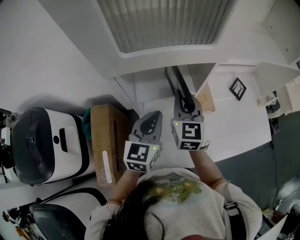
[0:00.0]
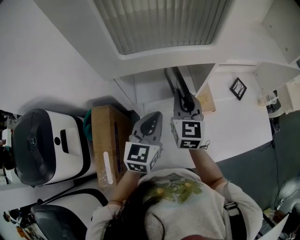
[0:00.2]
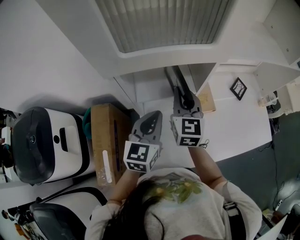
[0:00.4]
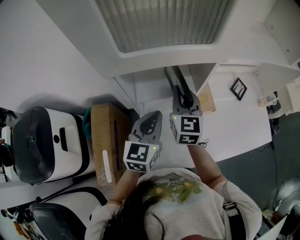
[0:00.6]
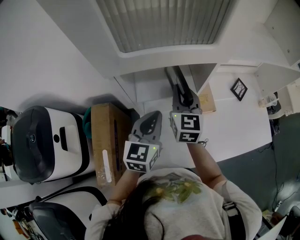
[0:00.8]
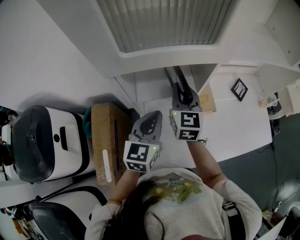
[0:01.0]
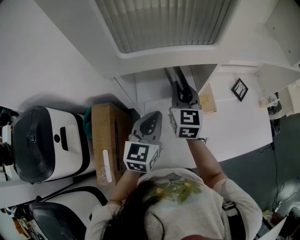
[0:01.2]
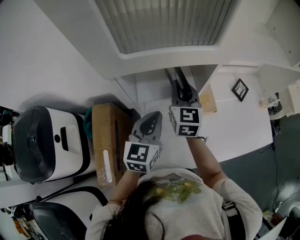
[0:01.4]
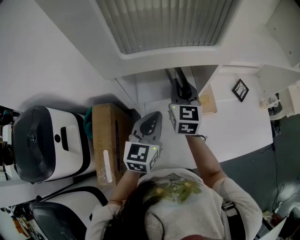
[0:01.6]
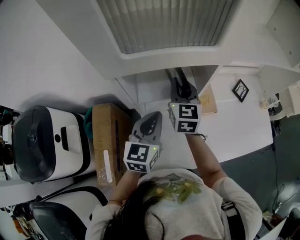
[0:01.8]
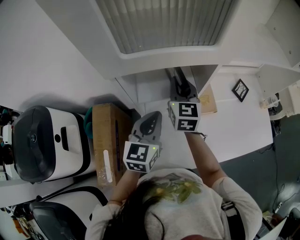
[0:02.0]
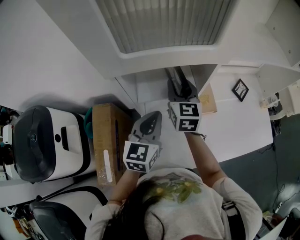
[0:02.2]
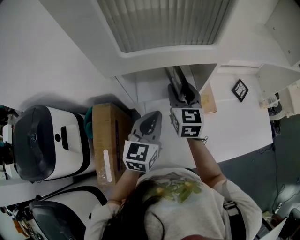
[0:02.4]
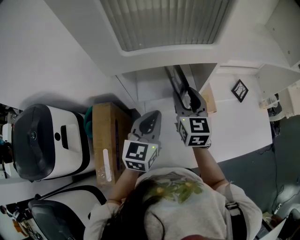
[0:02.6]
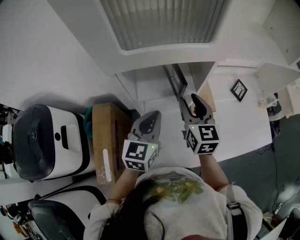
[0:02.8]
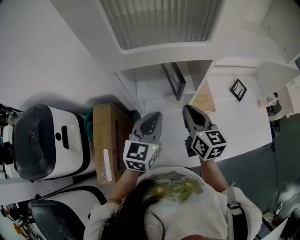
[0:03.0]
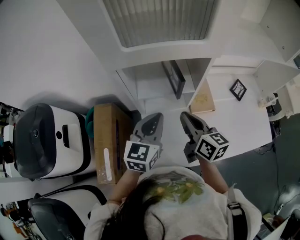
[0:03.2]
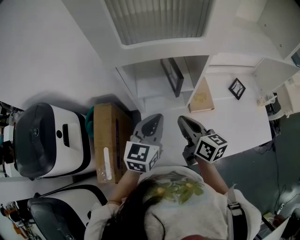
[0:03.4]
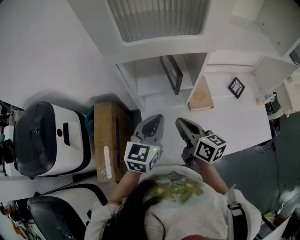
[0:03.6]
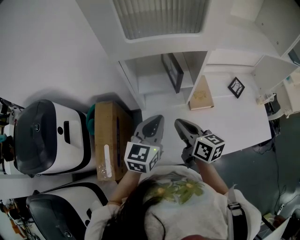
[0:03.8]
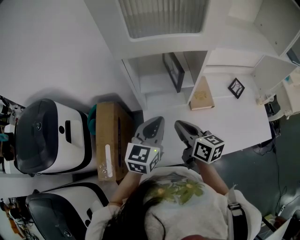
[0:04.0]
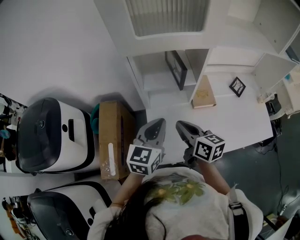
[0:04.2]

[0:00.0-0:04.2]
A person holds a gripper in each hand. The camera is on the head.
0:00.0 to 0:01.4: The grippers make only small movements.
0:01.4 to 0:02.8: The right gripper travels backward by approximately 5 cm, and opens.
0:02.8 to 0:04.2: The grippers both shift backward by some 10 cm. The right gripper rotates roughly 40 degrees, and closes.

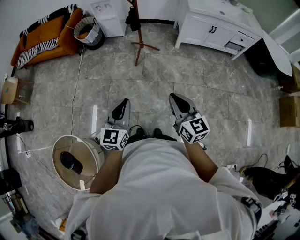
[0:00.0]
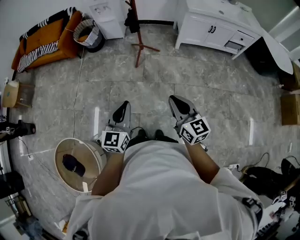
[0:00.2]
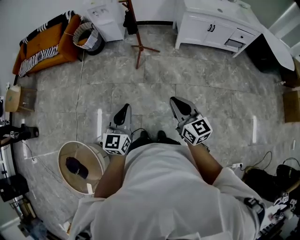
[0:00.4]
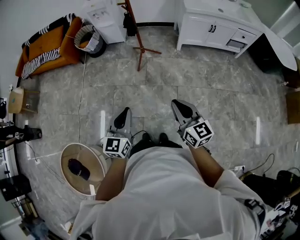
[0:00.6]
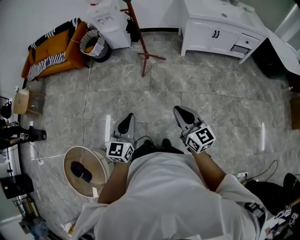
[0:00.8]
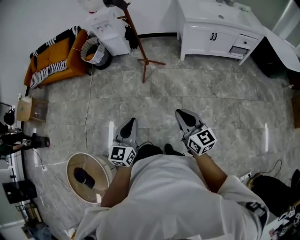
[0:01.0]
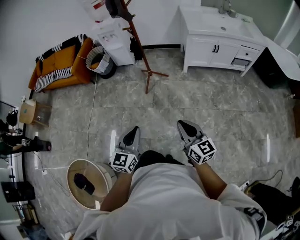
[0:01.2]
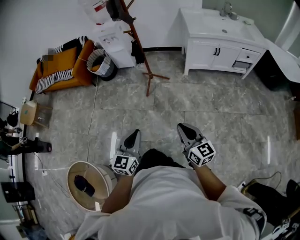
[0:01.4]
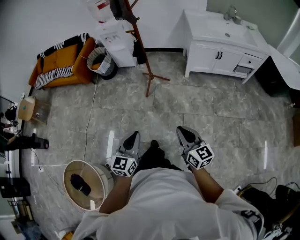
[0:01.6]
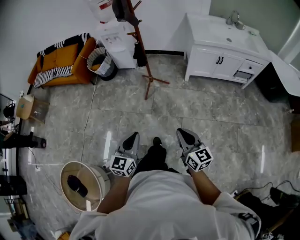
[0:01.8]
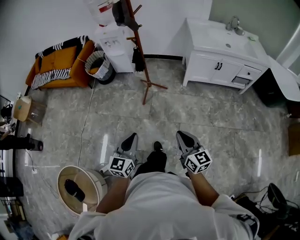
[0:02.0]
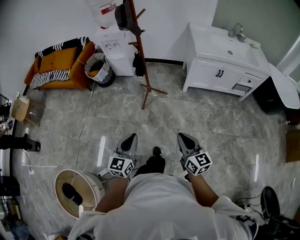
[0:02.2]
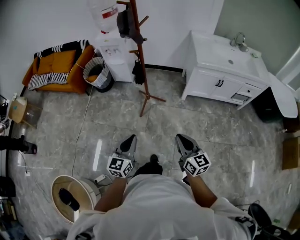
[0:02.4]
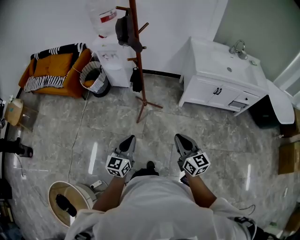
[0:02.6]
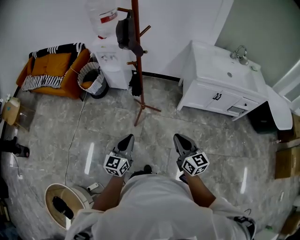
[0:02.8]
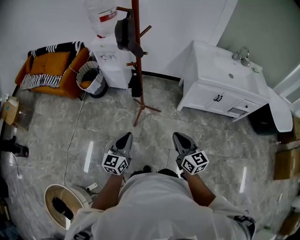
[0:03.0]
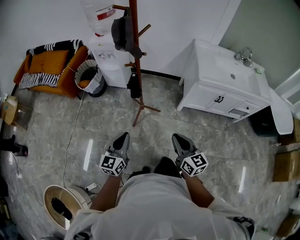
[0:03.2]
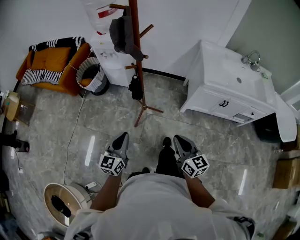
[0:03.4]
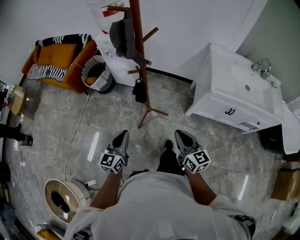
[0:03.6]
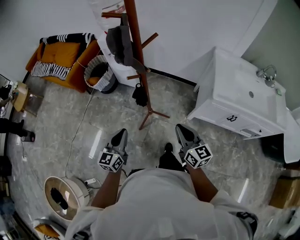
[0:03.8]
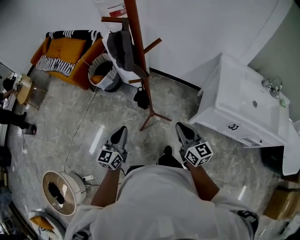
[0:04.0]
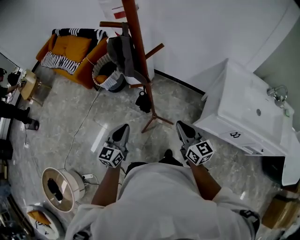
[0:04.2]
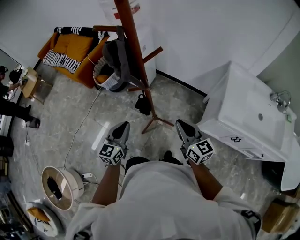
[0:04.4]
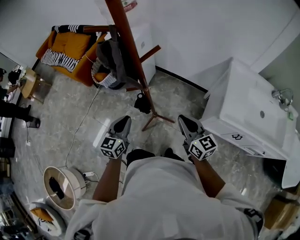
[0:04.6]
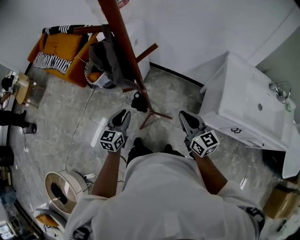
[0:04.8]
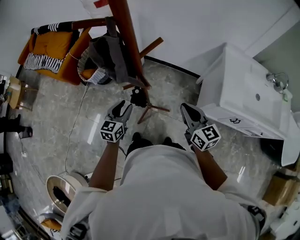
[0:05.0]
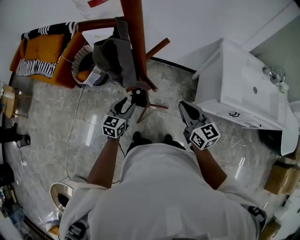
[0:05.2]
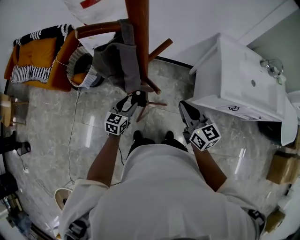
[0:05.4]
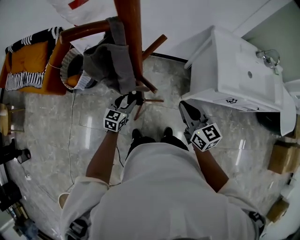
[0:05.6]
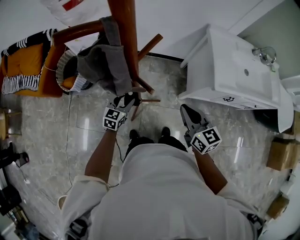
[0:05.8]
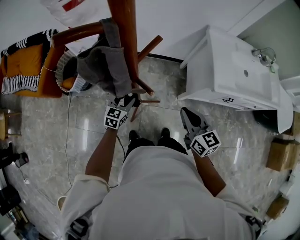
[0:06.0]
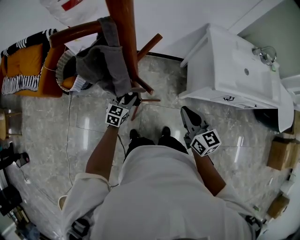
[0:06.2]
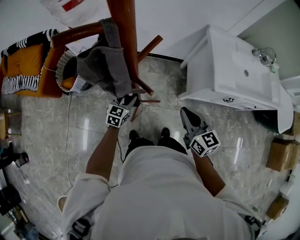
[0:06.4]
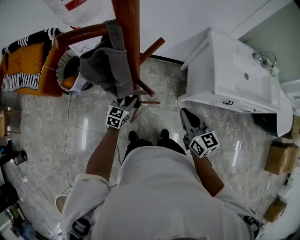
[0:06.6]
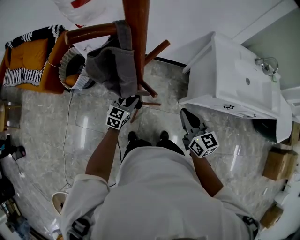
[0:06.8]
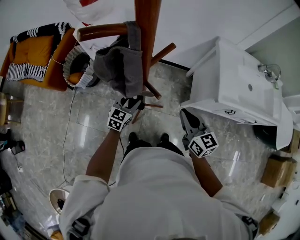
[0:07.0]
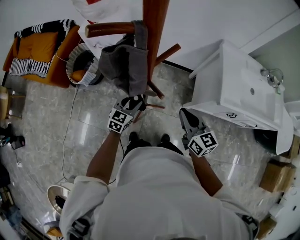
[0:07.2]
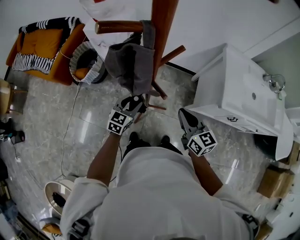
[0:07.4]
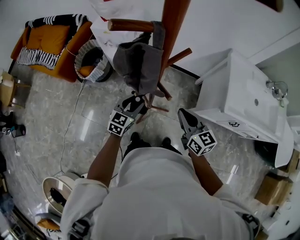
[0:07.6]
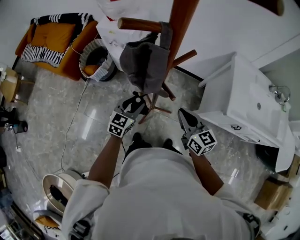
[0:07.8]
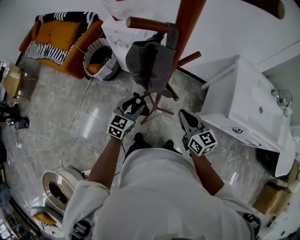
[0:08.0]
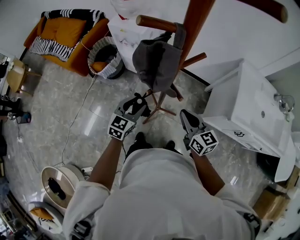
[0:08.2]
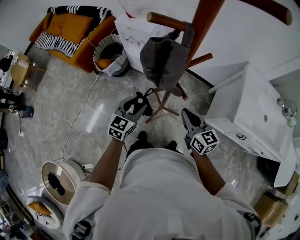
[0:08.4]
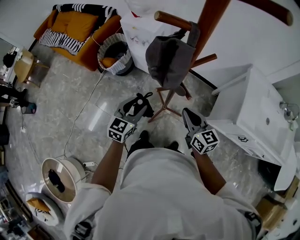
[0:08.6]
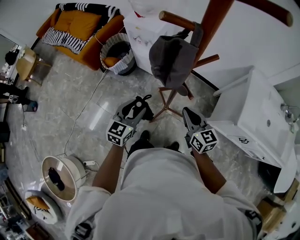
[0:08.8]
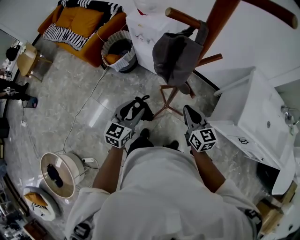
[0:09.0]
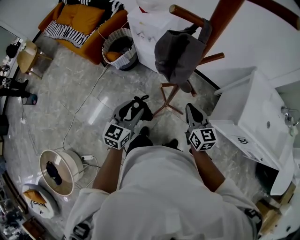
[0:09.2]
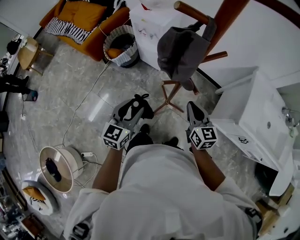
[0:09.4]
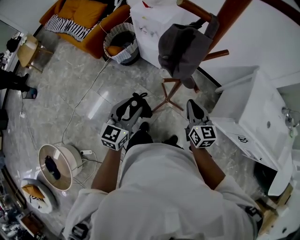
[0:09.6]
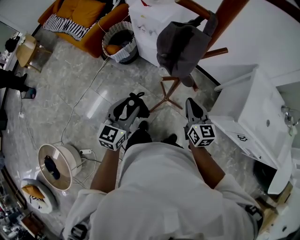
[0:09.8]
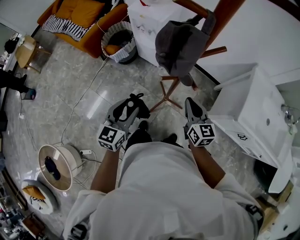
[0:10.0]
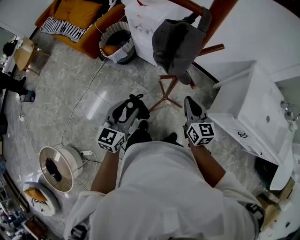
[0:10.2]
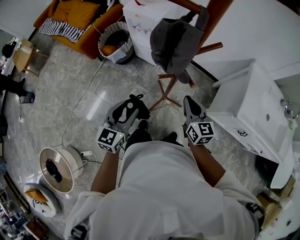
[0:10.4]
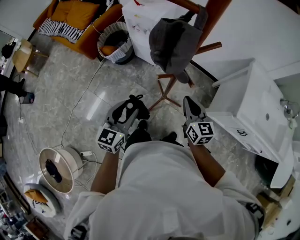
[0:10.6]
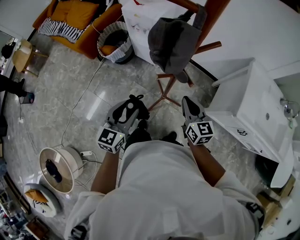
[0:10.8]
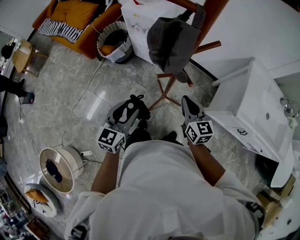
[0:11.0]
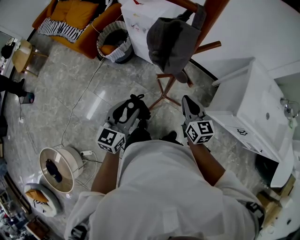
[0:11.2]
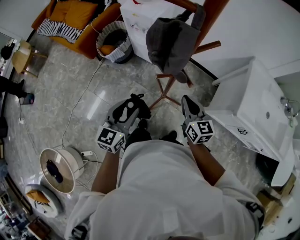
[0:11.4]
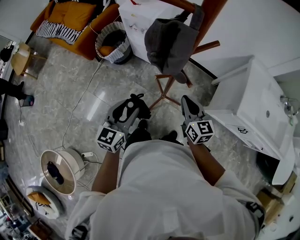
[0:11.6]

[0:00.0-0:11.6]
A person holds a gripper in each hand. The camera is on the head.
0:00.0 to 0:01.4: Both grippers travel together to the right, about 10 cm.
0:01.4 to 0:02.8: The two grippers go about 30 cm forward.
0:02.8 to 0:04.4: Both grippers travel together forward, roughly 35 cm. The right gripper rotates about 20 degrees.
0:04.4 to 0:05.8: The left gripper moves approximately 25 cm, changes its angle by roughly 30 degrees, and opens up, while the right gripper changes its angle by some 30 degrees.
0:05.8 to 0:07.2: There are only small adjustments of the grippers.
0:07.2 to 0:08.8: The right gripper goes some 10 cm to the left, while the left gripper is displaced to the left, upward and backward by roughly 15 cm, and rotates some 20 degrees.
0:08.8 to 0:10.2: The left gripper is displaced backward by roughly 5 cm.
0:10.2 to 0:11.6: The grippers make only small movements.

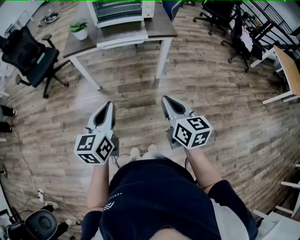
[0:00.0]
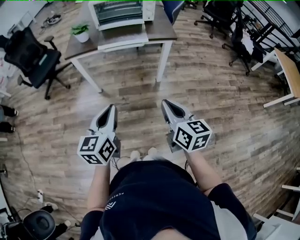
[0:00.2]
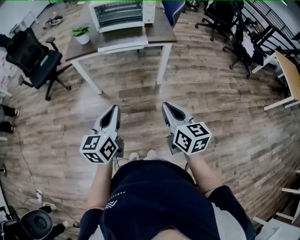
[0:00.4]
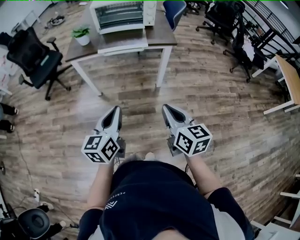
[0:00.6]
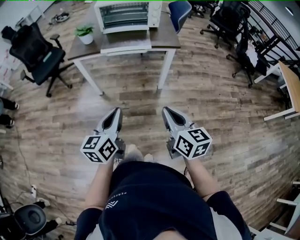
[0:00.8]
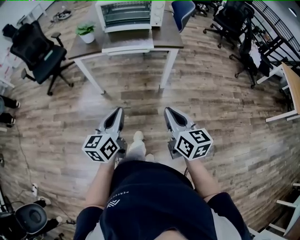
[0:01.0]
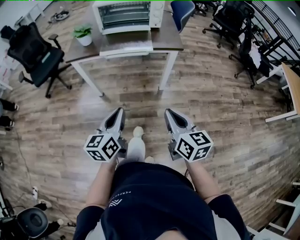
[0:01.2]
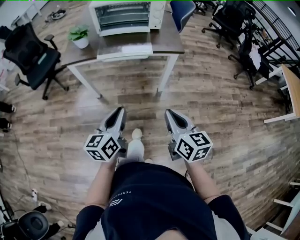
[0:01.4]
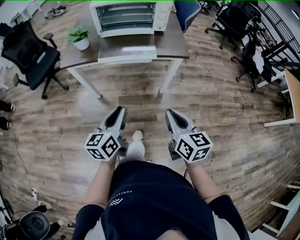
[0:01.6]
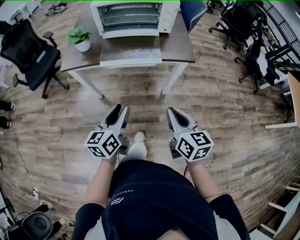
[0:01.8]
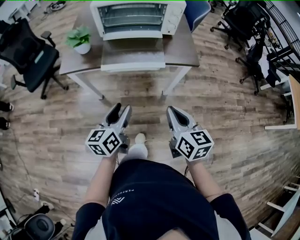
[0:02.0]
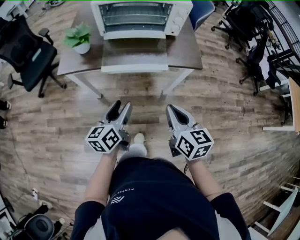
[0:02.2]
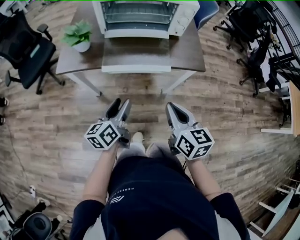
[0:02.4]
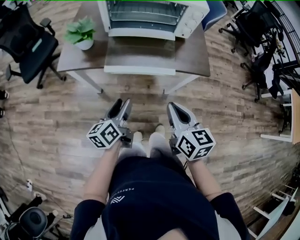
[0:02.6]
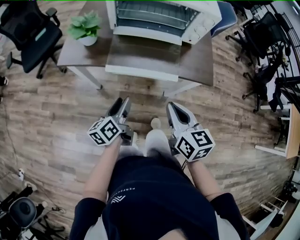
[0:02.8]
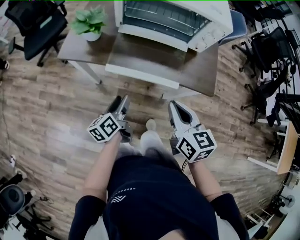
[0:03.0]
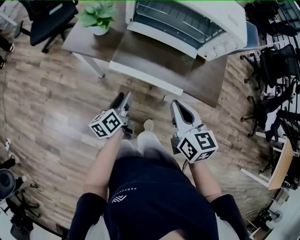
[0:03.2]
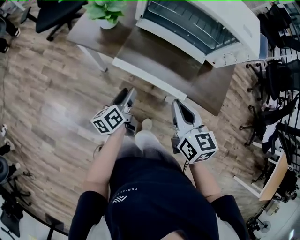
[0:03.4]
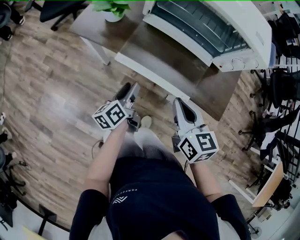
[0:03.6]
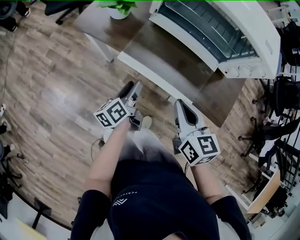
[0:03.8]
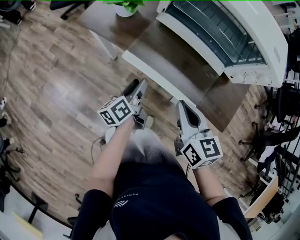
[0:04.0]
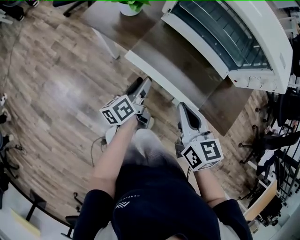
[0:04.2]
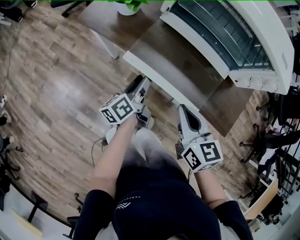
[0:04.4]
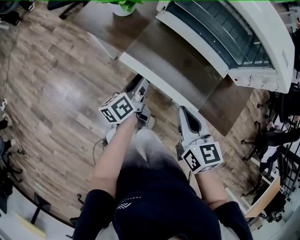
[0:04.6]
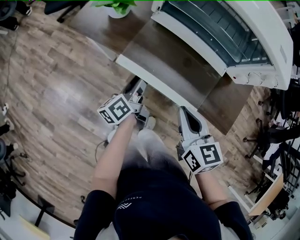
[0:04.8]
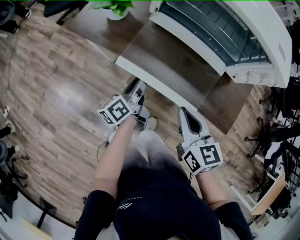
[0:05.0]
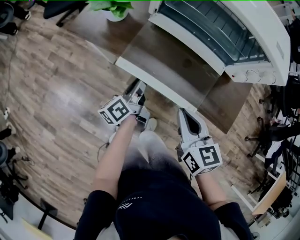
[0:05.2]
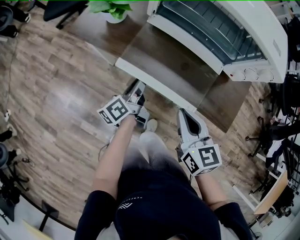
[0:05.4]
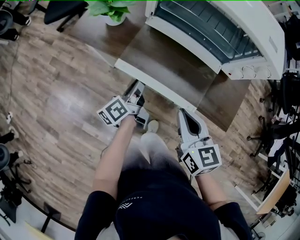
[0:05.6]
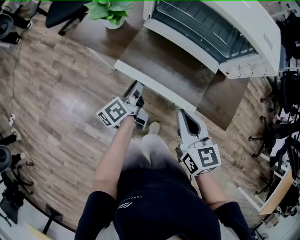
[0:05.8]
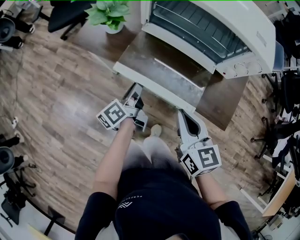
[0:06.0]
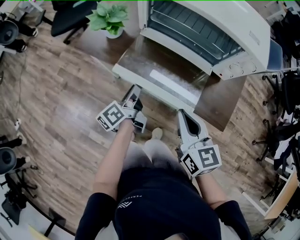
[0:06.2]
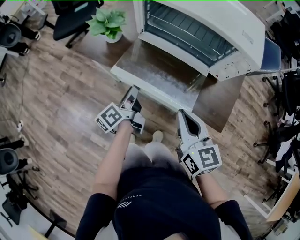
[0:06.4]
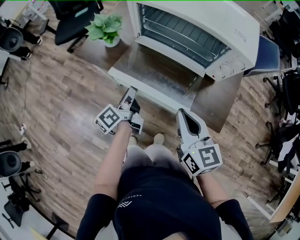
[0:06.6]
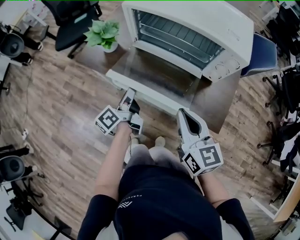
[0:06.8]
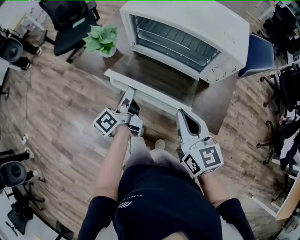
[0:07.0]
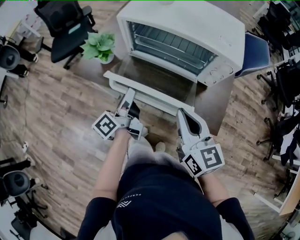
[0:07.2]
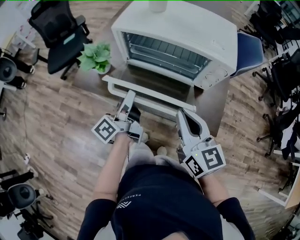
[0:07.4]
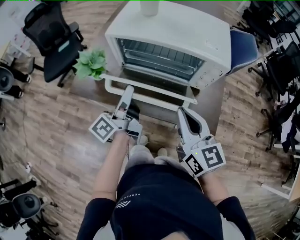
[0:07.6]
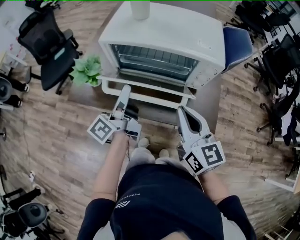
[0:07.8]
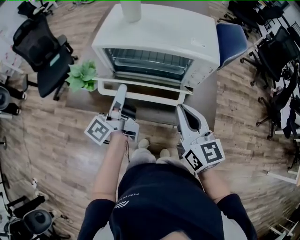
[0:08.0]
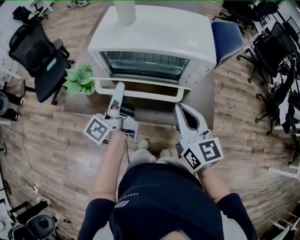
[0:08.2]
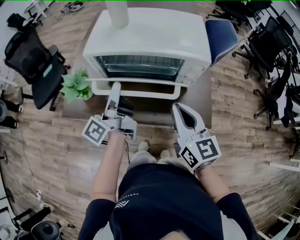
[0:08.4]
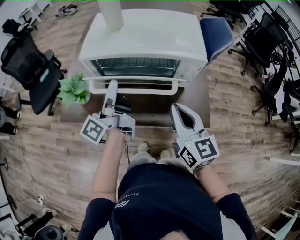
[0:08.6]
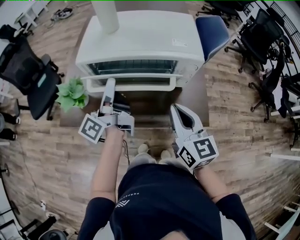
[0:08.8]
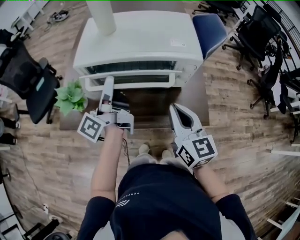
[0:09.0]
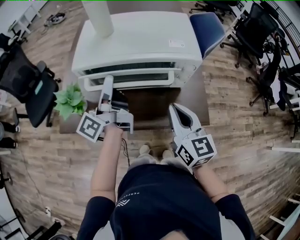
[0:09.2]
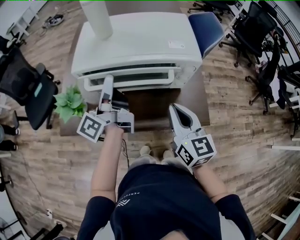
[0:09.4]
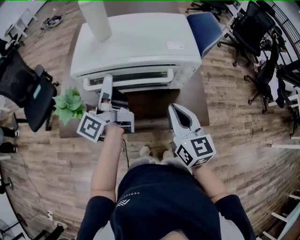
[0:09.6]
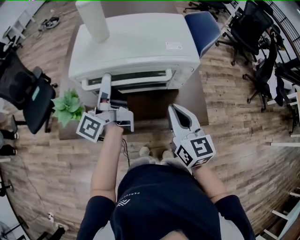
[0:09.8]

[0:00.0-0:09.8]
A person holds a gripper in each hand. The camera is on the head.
0:00.0 to 0:01.4: The right gripper goes roughly 10 cm forward. Meanwhile the left gripper goes approximately 15 cm forward and downward.
0:01.4 to 0:02.8: The left gripper goes about 25 cm forward and downward, turns by roughly 30 degrees, and opens, while the right gripper moves forward, some 25 cm.
0:02.8 to 0:04.2: Both grippers travel together forward and downward, some 10 cm. The left gripper rotates some 30 degrees; the right gripper changes its angle by roughly 30 degrees.
0:04.2 to 0:05.6: The left gripper closes.
0:05.6 to 0:07.0: Both grippers move upward, roughly 10 cm.
0:07.0 to 0:08.4: The left gripper shifts some 15 cm upward and forward; the right gripper moves forward, roughly 5 cm, and rotates about 20 degrees.
0:08.4 to 0:09.8: The left gripper is displaced forward by approximately 5 cm.
